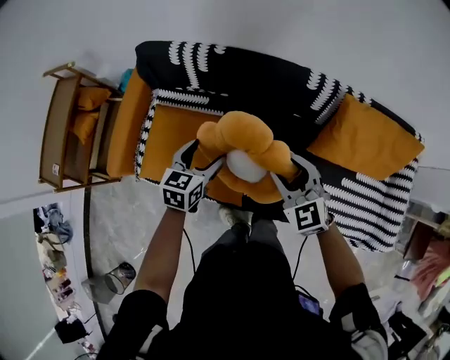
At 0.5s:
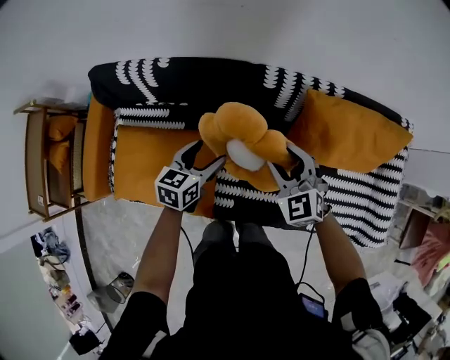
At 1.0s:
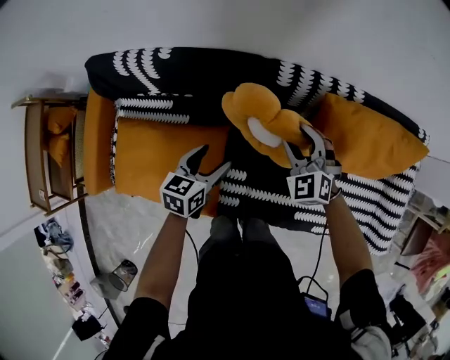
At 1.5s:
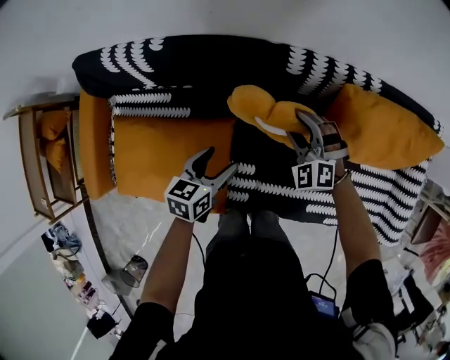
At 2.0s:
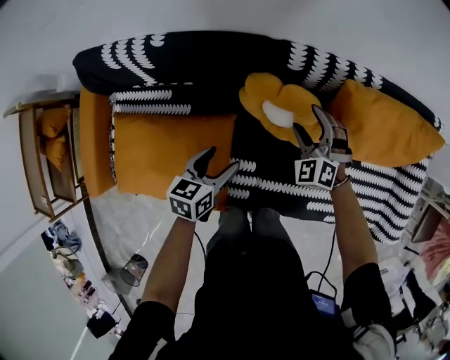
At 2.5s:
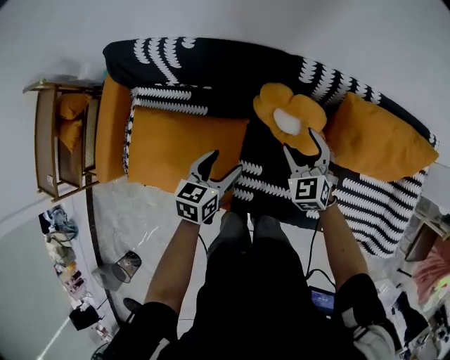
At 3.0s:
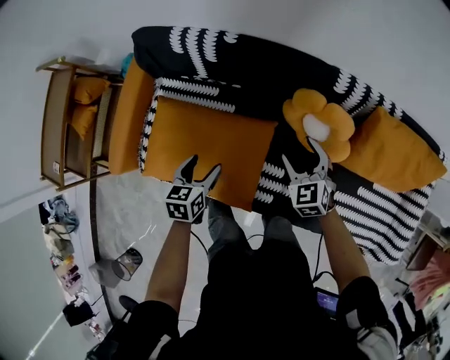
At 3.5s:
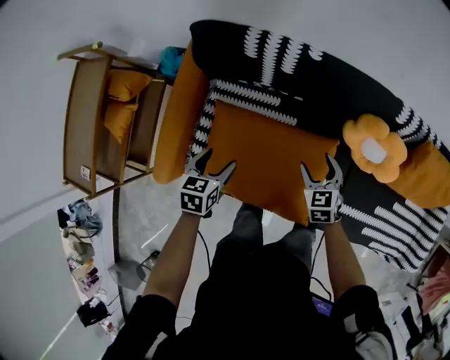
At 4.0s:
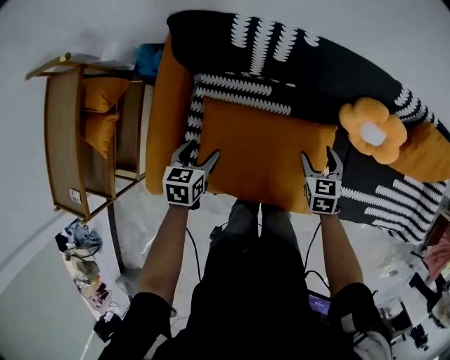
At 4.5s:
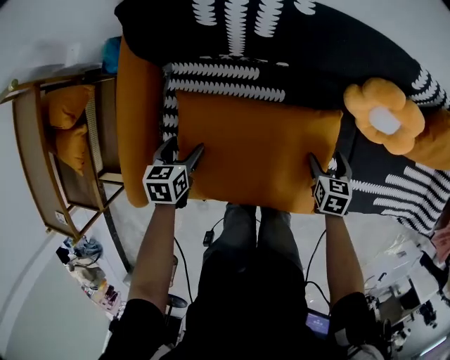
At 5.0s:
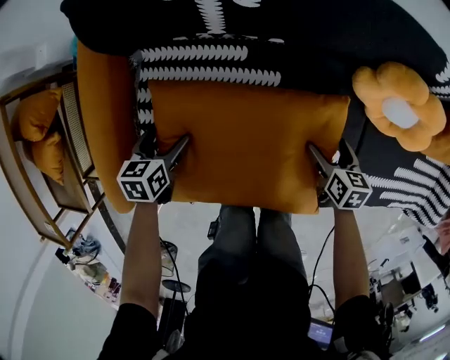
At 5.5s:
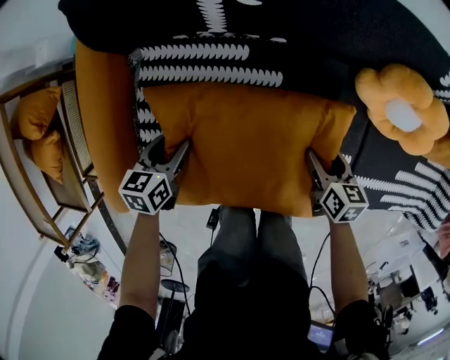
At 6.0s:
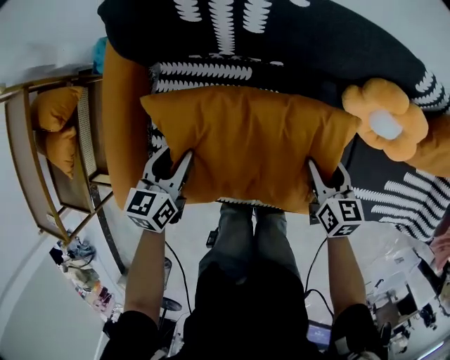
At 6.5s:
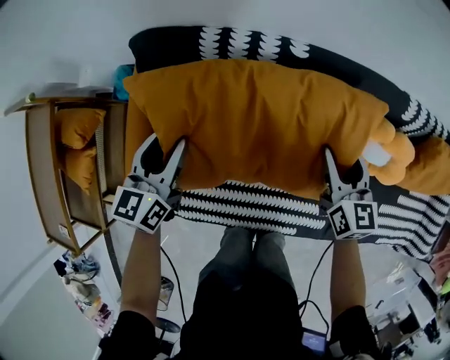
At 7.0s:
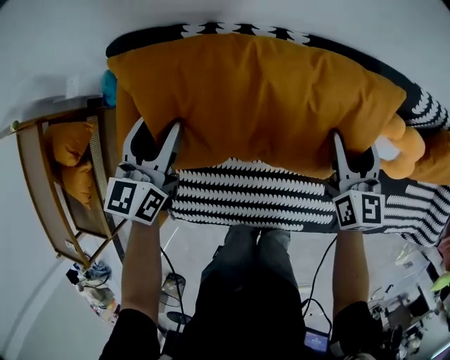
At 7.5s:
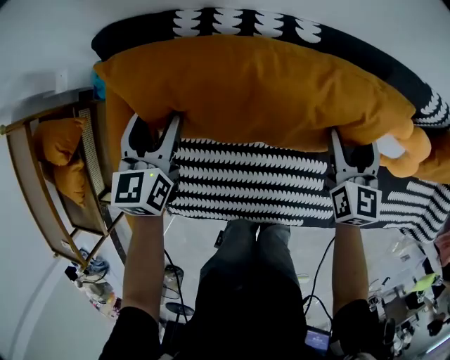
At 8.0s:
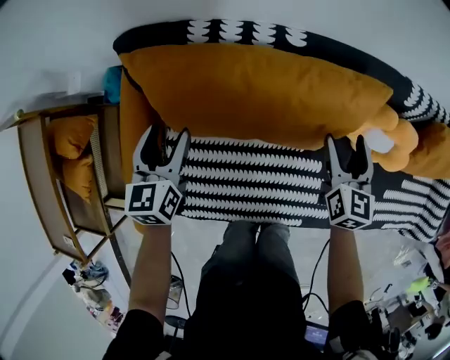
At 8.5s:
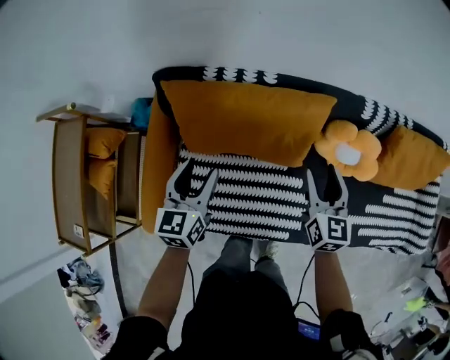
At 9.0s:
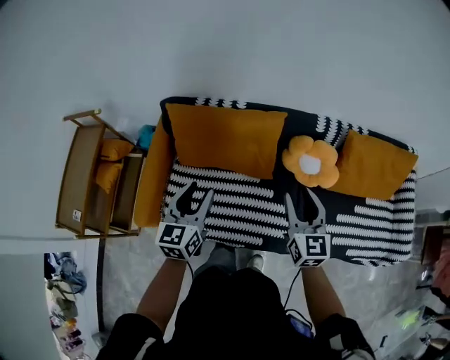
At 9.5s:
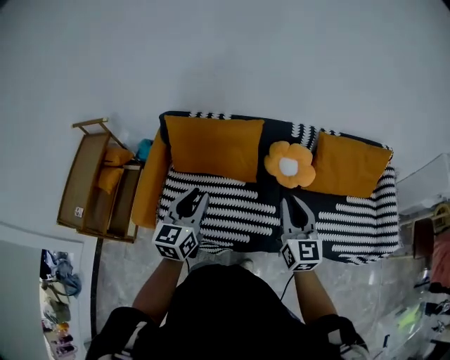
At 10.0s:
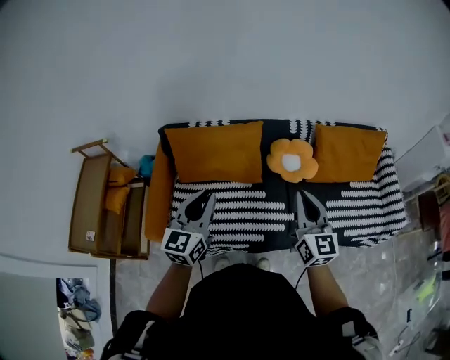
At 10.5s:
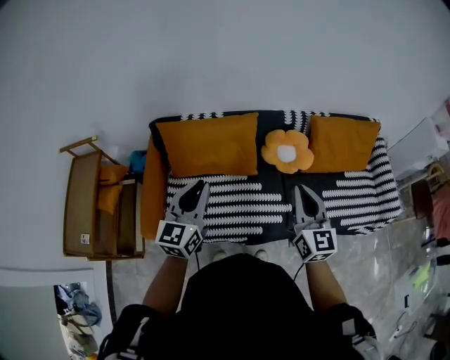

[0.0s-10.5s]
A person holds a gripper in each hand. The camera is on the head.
0.0s to 2.0s: The right gripper travels downward, forward and to the right by approximately 30 cm, and swivels roughly 30 degrees. Meanwhile the left gripper goes about 20 cm downward, to the right and forward.
2.0s to 4.0s: Both grippers travel together to the left, about 40 cm. The right gripper rolls clockwise, seen from behind, by approximately 50 degrees.
4.0s to 6.5s: The left gripper is displaced forward and upward by approximately 15 cm, points its fingers roughly 30 degrees further upward, and closes, while the right gripper goes some 10 cm forward, travels downward and back again, some 15 cm each way, and changes its angle by roughly 30 degrees.
6.5s to 8.5s: The left gripper goes approximately 15 cm to the right, upward and backward; the right gripper is displaced upward and backward by some 10 cm.
8.5s to 10.5s: The left gripper goes about 30 cm upward, backward and to the right, rotates approximately 20 degrees, and closes; the right gripper travels backward and upward by some 35 cm, and closes up.

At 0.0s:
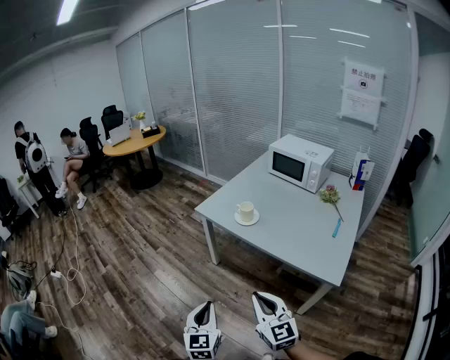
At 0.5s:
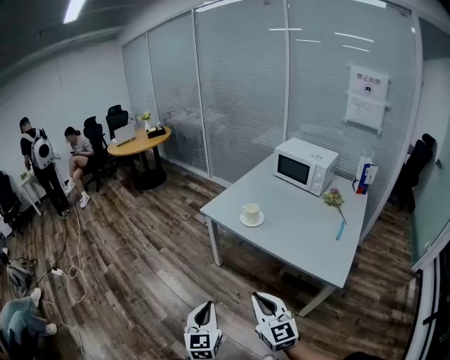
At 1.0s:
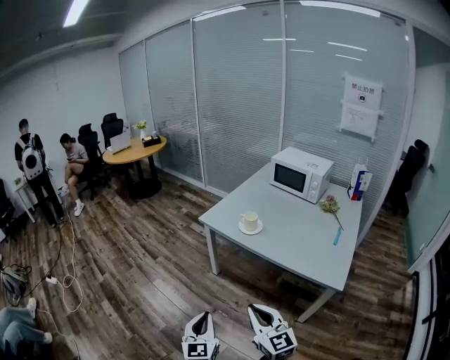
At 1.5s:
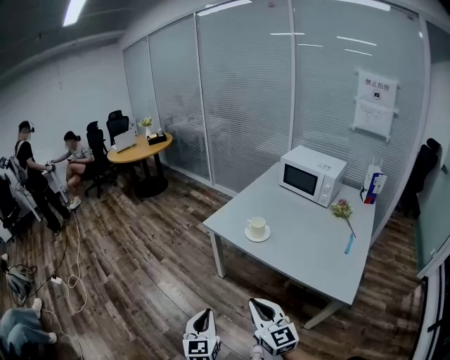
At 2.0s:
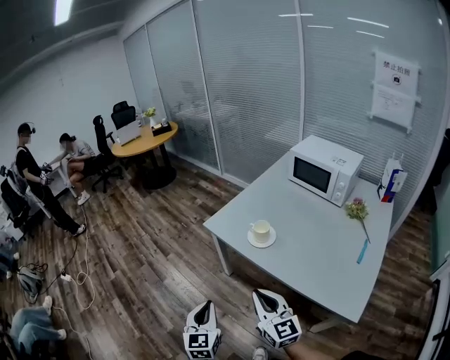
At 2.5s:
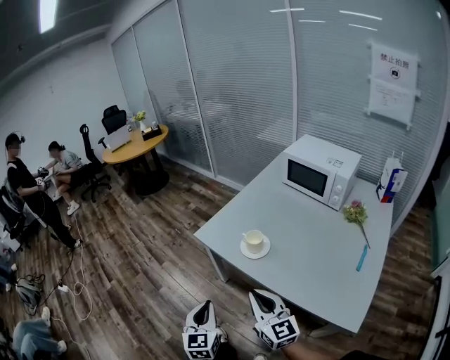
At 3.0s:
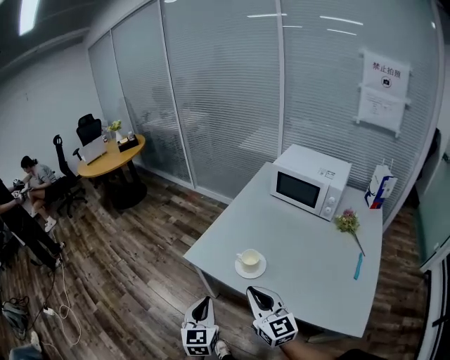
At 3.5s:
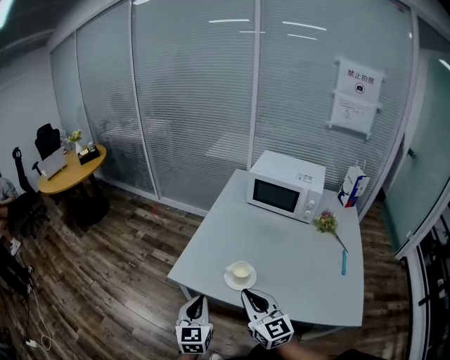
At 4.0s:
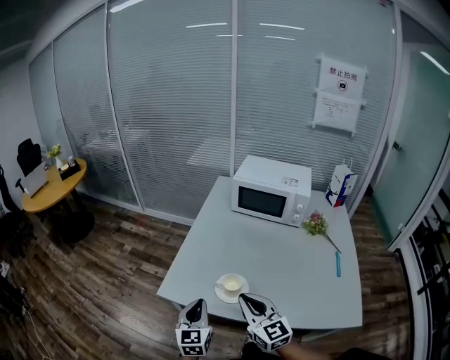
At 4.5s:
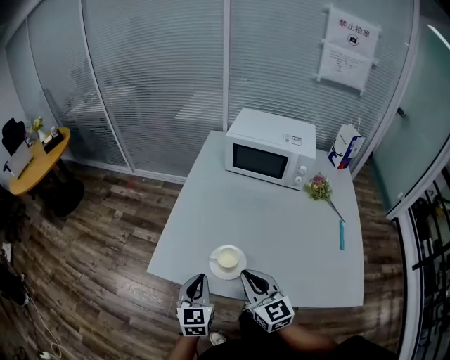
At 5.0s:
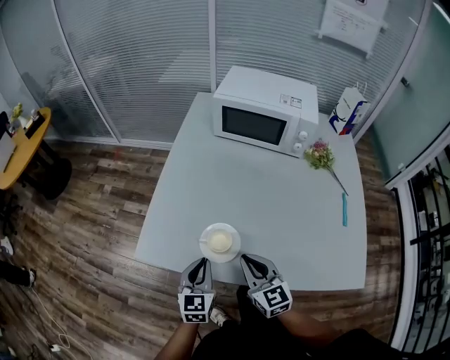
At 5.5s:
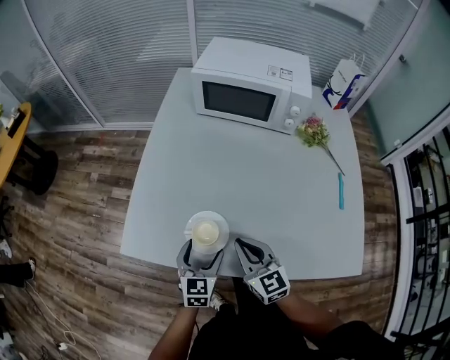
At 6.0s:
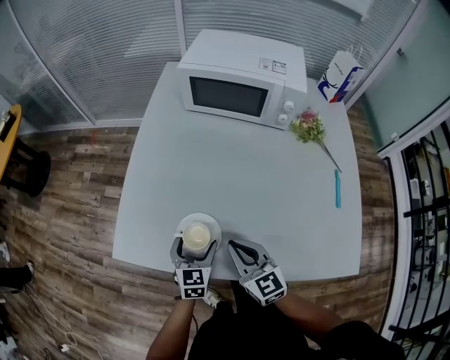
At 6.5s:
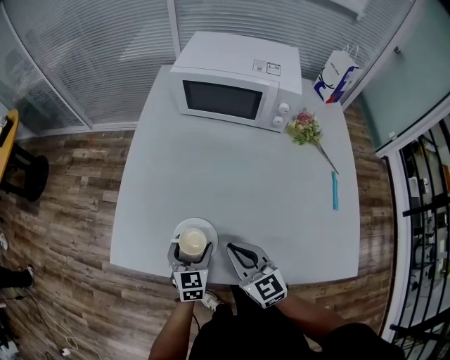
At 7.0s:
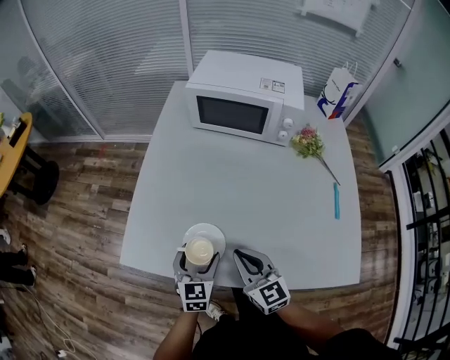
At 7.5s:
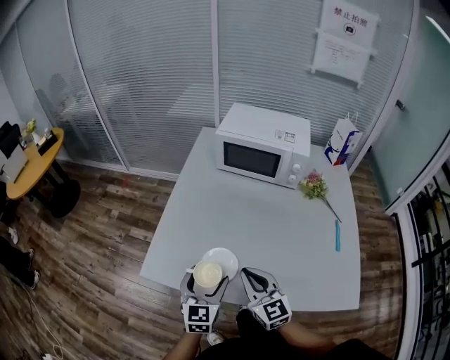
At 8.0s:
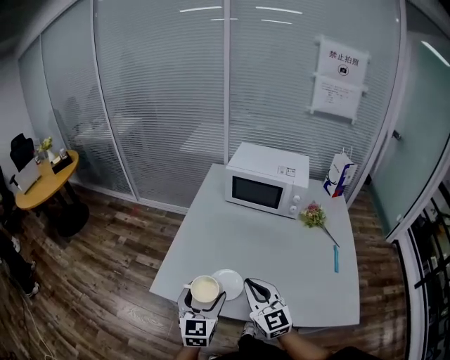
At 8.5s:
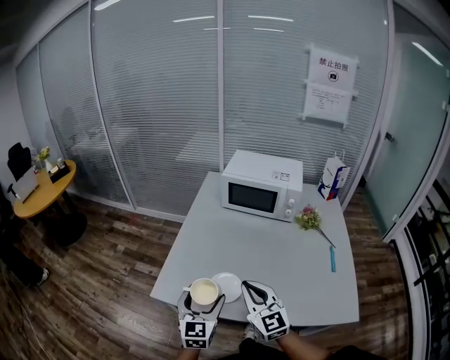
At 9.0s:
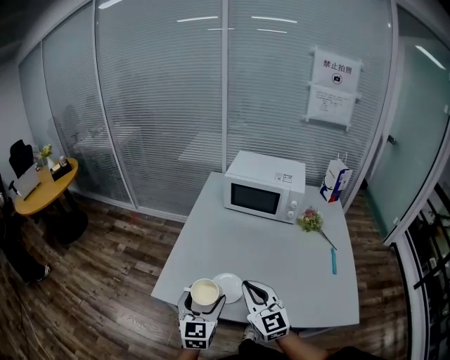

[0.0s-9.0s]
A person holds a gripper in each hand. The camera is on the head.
0.0s to 2.0s: The two grippers go roughly 20 cm forward.
2.0s to 4.5s: The right gripper changes place by approximately 30 cm, and changes its angle by approximately 30 degrees. Meanwhile the left gripper shifts by about 40 cm, and rotates approximately 30 degrees.
4.5s to 7.0s: The left gripper moves to the right, downward and forward, about 15 cm, and opens. Meanwhile the right gripper is displaced downward and to the right by approximately 10 cm.
7.0s to 9.0s: Both grippers move upward and to the left, about 15 cm.

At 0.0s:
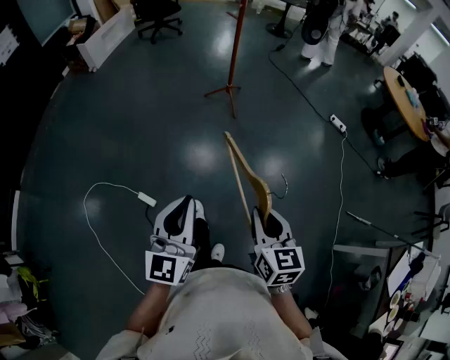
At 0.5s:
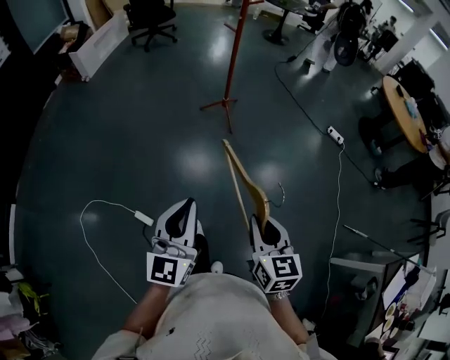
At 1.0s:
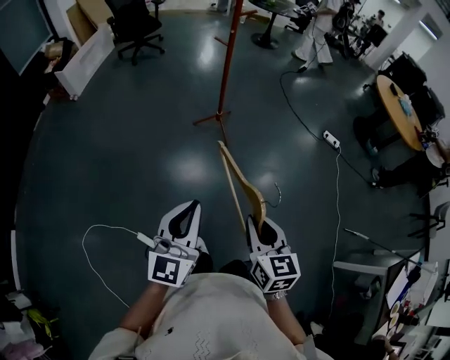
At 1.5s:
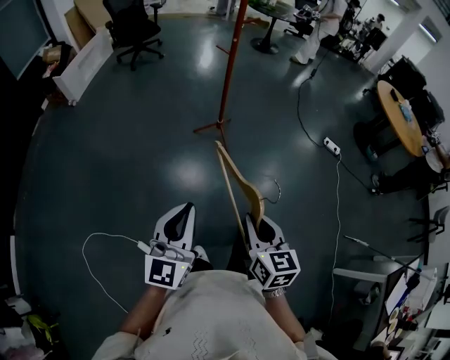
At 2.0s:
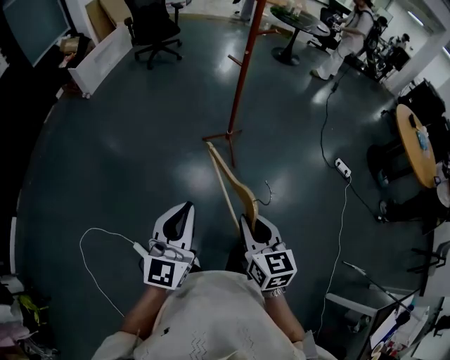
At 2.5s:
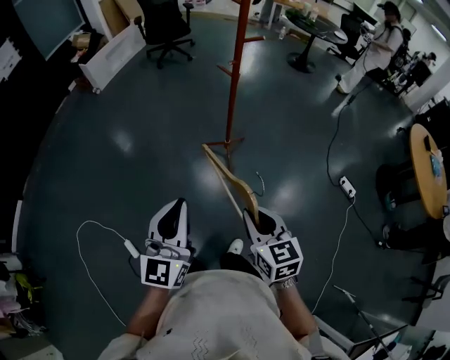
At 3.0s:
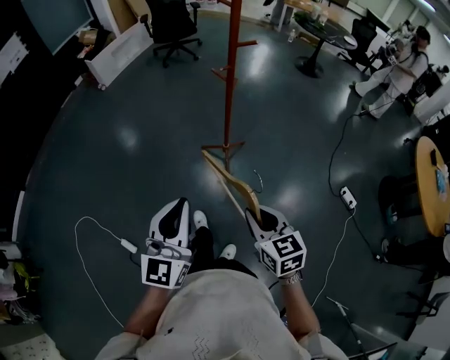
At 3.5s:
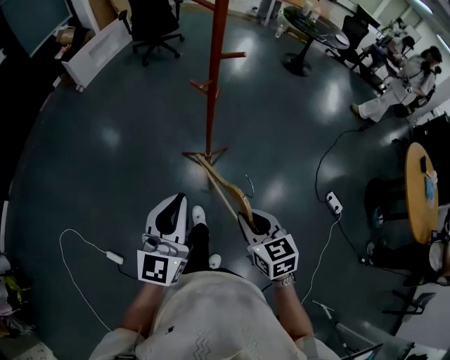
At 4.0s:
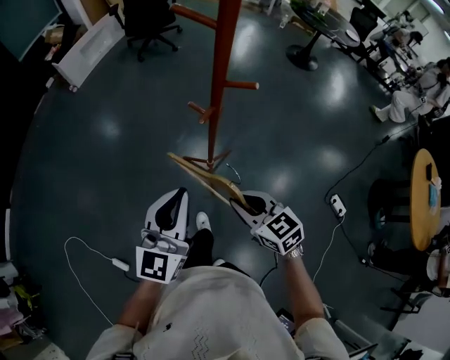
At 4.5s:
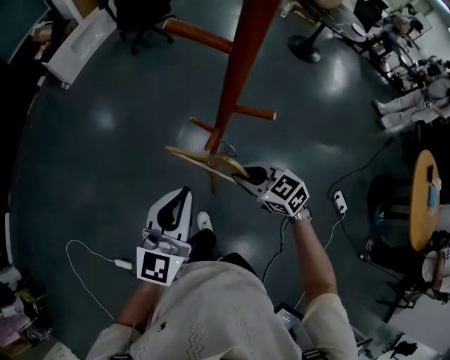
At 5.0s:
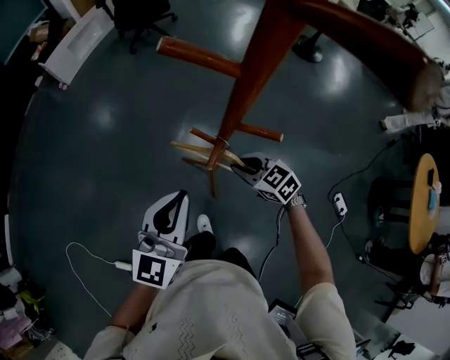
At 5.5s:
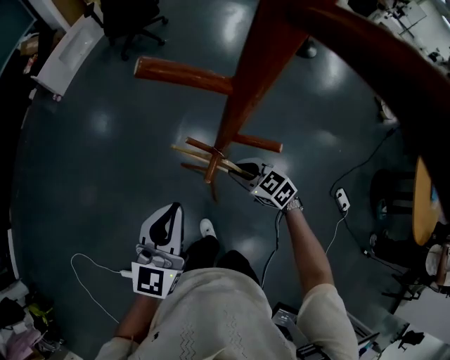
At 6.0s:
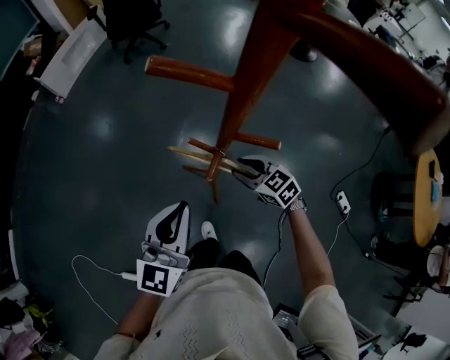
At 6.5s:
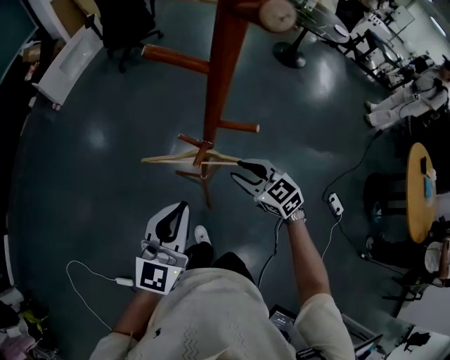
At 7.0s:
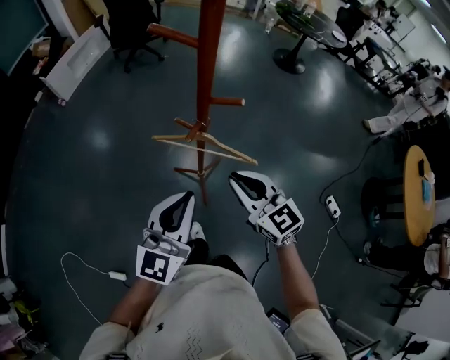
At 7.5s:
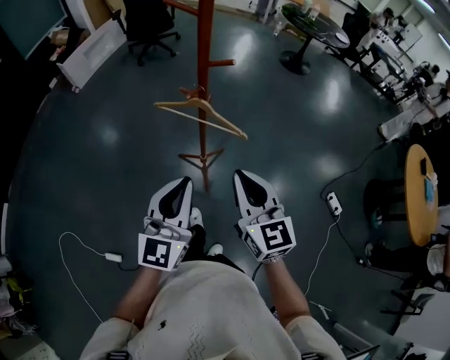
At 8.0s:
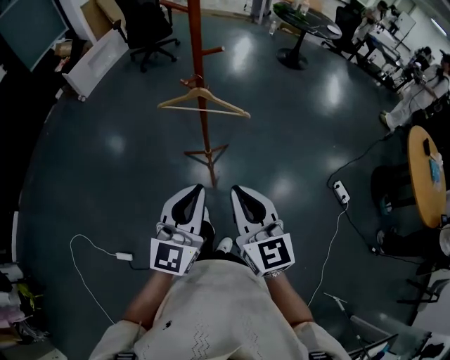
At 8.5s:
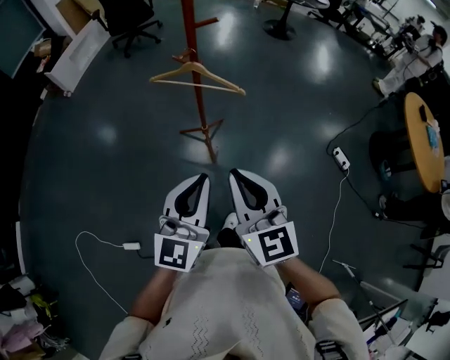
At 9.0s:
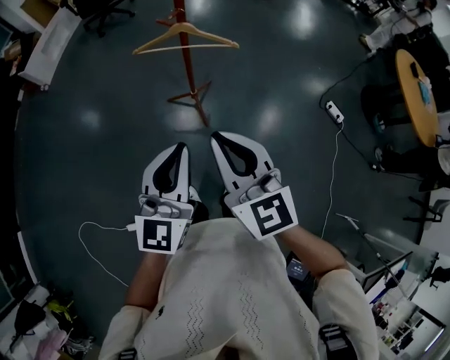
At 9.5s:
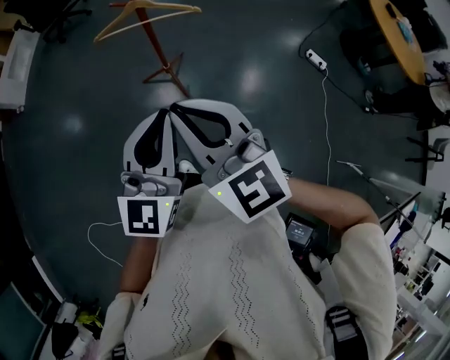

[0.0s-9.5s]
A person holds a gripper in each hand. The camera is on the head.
0.0s to 2.0s: Both grippers are carried forward, about 40 cm.
2.0s to 4.0s: The two grippers travel together, forward and to the right, about 50 cm. The right gripper swivels some 40 degrees.
4.0s to 5.5s: The left gripper shifts roughly 15 cm forward, while the right gripper goes roughly 25 cm forward and downward.
5.5s to 7.5s: The left gripper moves backward, about 25 cm. Meanwhile the right gripper is displaced backward and upward by about 40 cm, and tilts its fingers some 30 degrees upward.
7.5s to 9.5s: The right gripper goes approximately 25 cm backward and to the left, while the left gripper goes about 15 cm backward.
